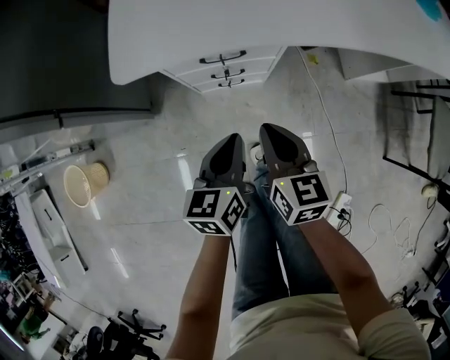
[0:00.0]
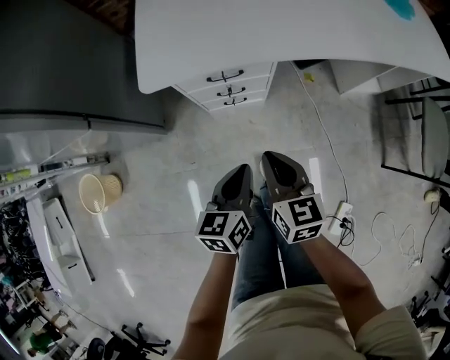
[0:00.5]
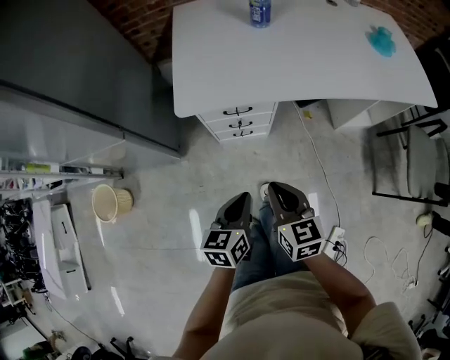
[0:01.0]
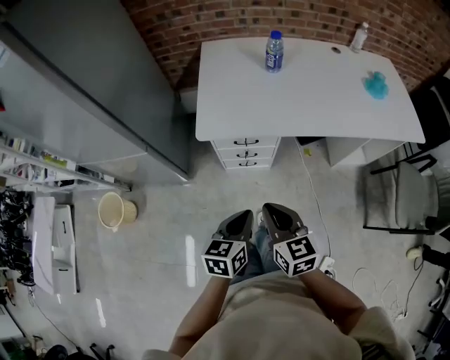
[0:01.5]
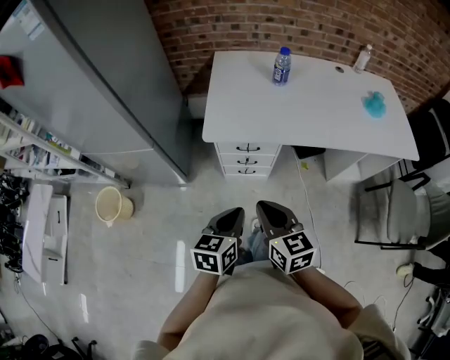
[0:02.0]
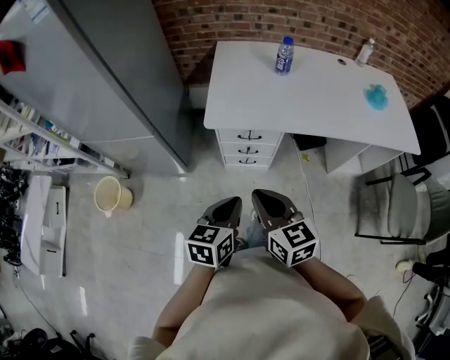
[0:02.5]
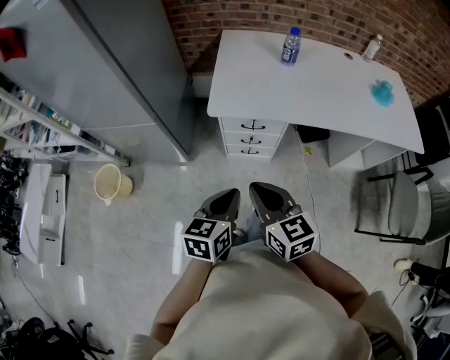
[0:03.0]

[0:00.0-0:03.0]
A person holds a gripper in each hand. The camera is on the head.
0:00.0 to 0:01.5: The two grippers go approximately 25 cm upward and backward.
0:01.5 to 0:03.0: The left gripper shifts by about 5 cm. The right gripper travels to the left and upward by some 5 cm.

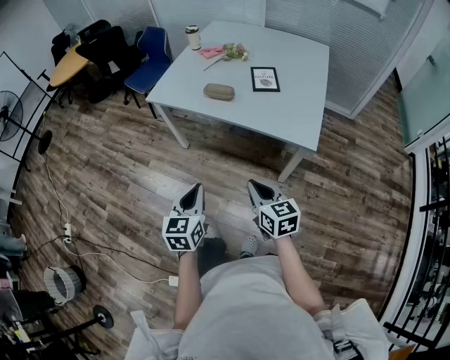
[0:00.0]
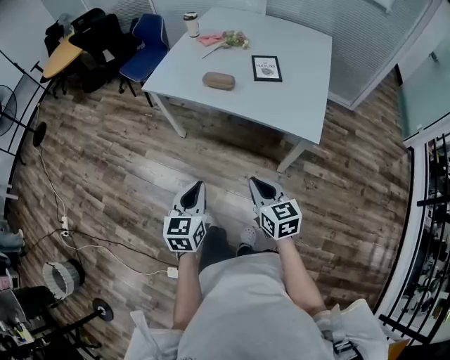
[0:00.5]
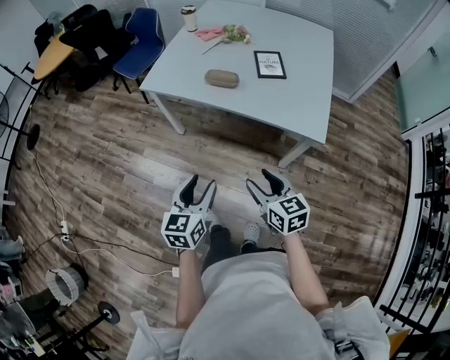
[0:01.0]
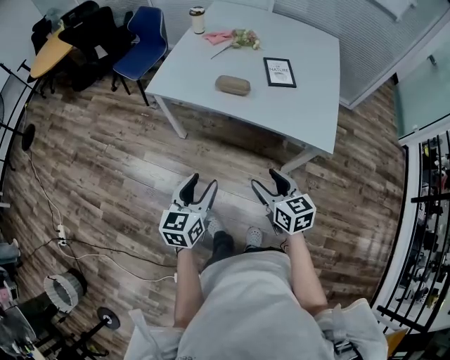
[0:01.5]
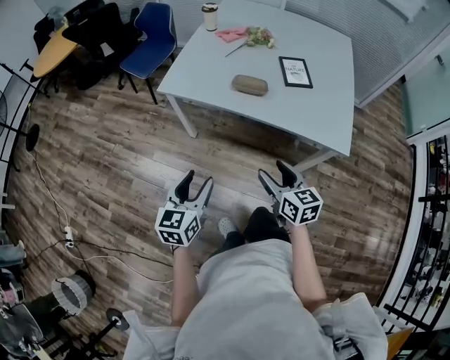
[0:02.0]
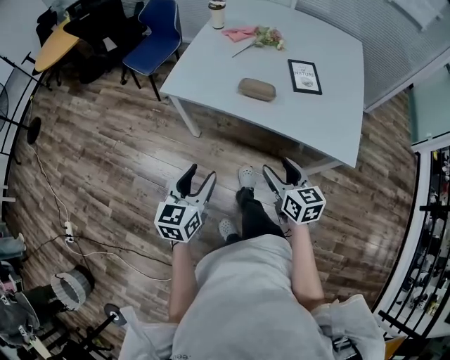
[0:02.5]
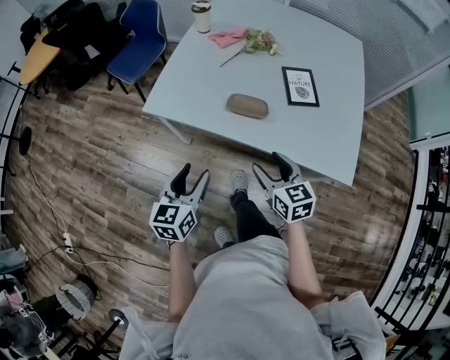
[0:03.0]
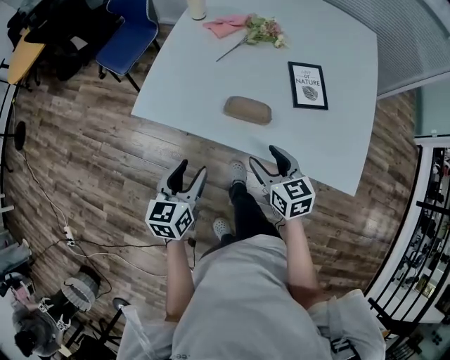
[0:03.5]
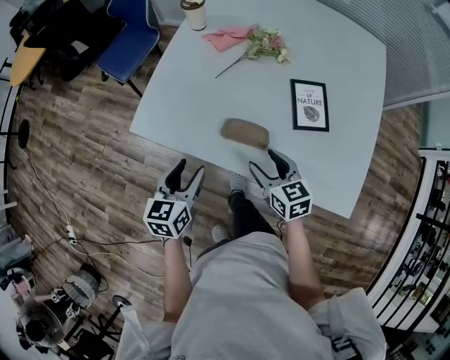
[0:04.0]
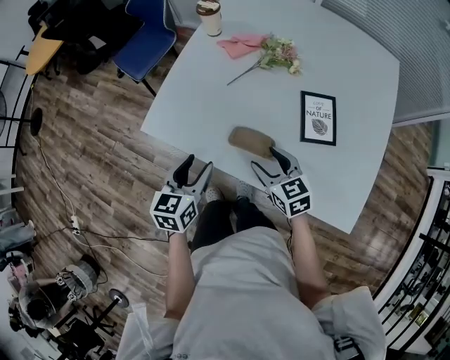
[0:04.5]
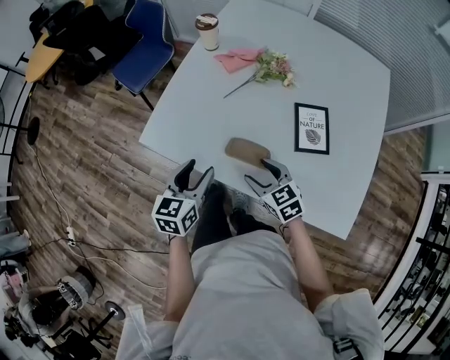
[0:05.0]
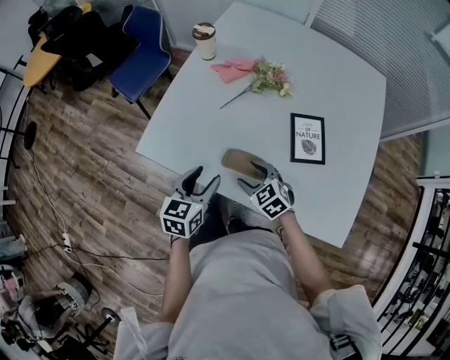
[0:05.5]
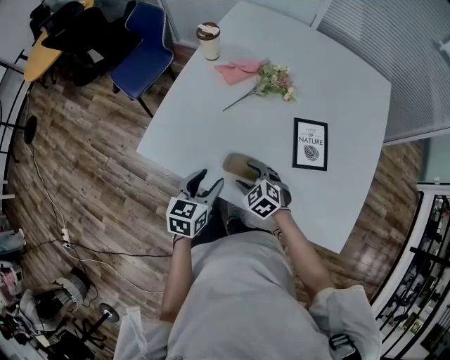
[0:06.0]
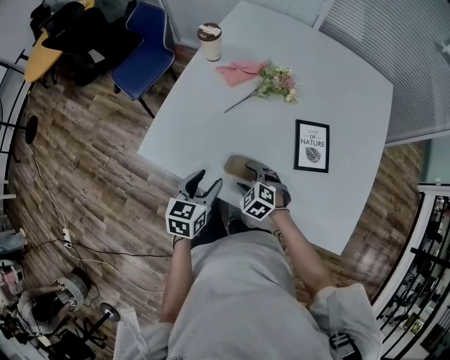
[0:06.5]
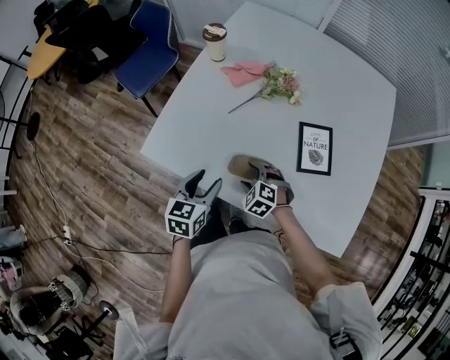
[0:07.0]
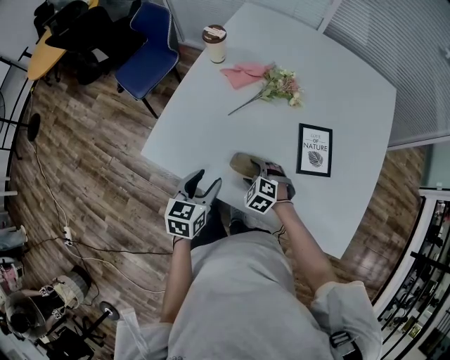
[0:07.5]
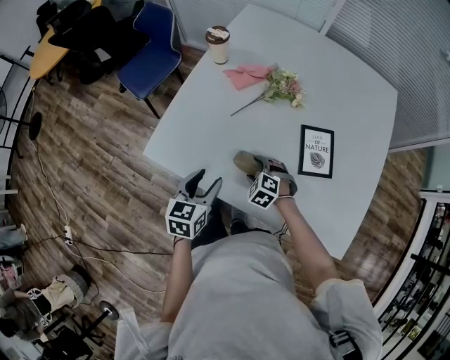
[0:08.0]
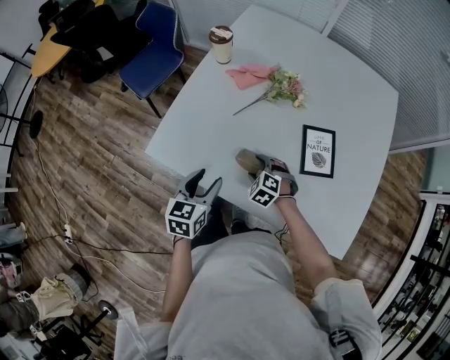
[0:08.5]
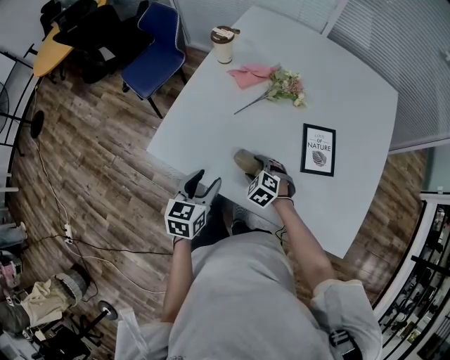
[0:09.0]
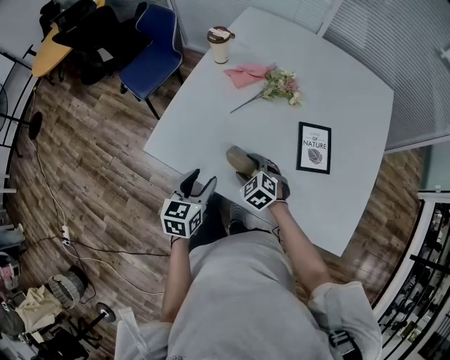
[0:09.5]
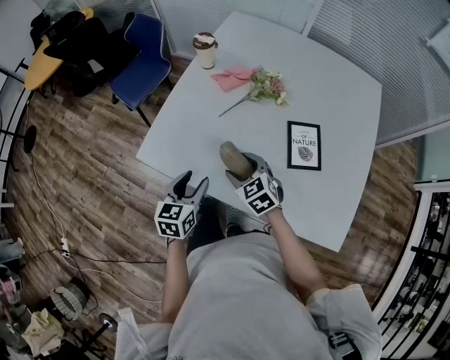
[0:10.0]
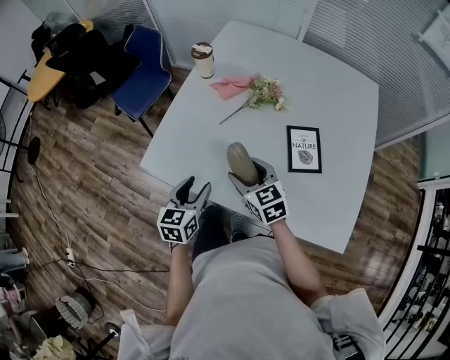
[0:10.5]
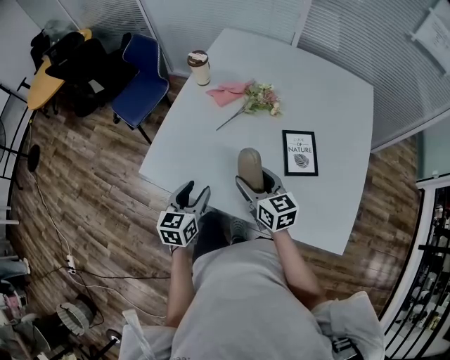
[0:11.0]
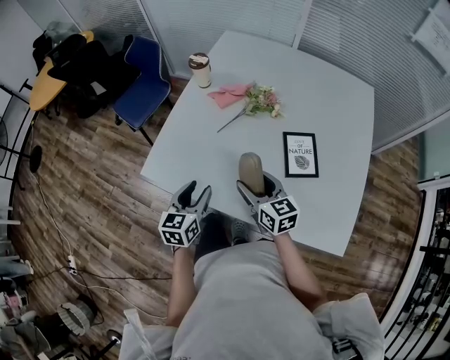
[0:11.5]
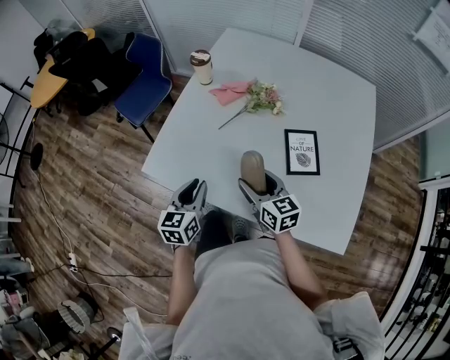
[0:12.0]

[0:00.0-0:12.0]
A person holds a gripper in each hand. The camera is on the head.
0:00.0 to 0:02.0: The right gripper travels forward and to the left by roughly 20 cm, and opens. Meanwhile the left gripper shifts approximately 20 cm to the left and forward, and opens up.
0:02.0 to 0:04.0: The grippers both shift forward by roughly 35 cm.
0:04.0 to 0:06.0: The right gripper is displaced downward and forward by some 10 cm, and changes its angle by about 40 degrees; the left gripper moves to the right and forward, some 10 cm.
0:06.0 to 0:08.0: The right gripper shifts by about 5 cm.
0:08.0 to 0:10.0: The right gripper is displaced upward by roughly 15 cm, and changes its angle by some 30 degrees.
0:10.0 to 0:12.0: The left gripper closes its fingers. The right gripper goes approximately 10 cm to the right and upward, and rotates some 40 degrees.

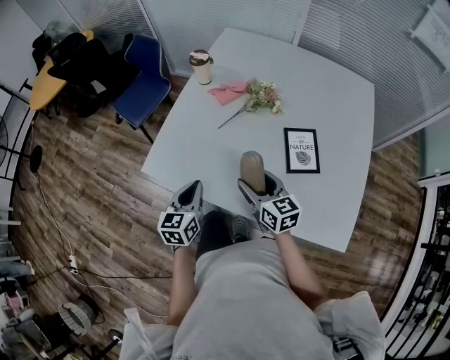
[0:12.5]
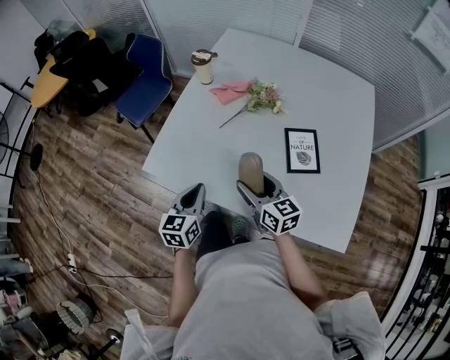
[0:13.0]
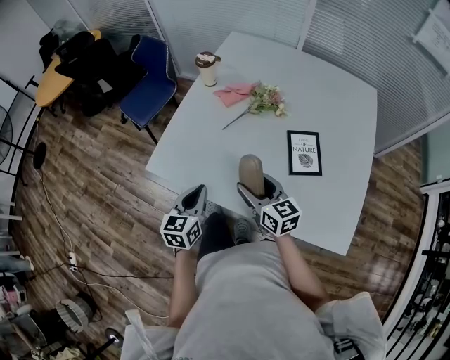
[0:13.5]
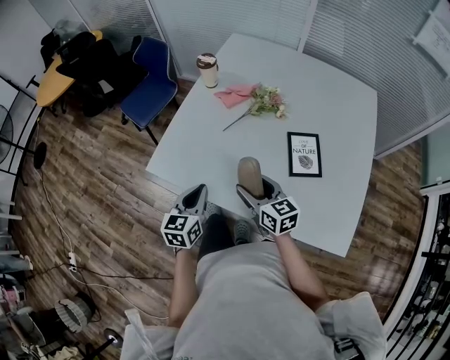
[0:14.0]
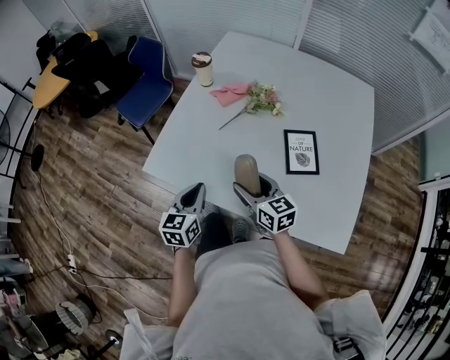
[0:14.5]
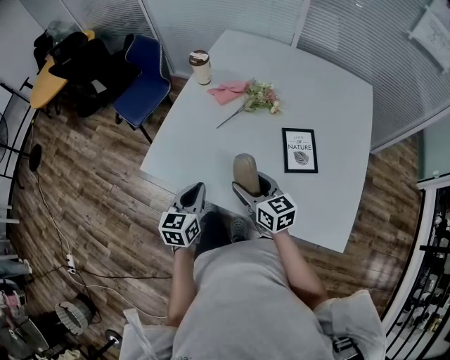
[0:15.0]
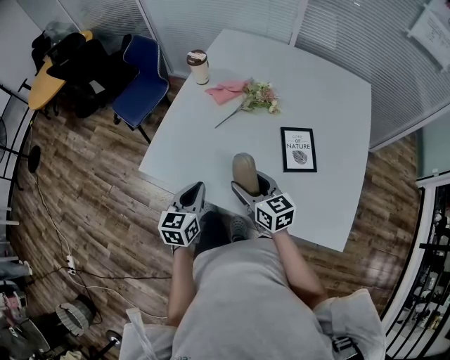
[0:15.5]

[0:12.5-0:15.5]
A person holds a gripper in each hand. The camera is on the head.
0:12.5 to 0:15.5: The grippers stay close to where they were, moving slightly.

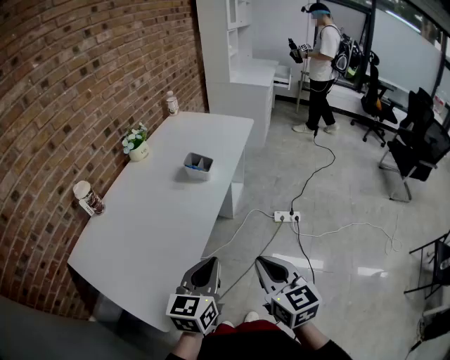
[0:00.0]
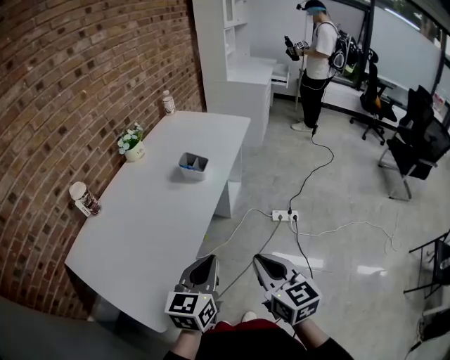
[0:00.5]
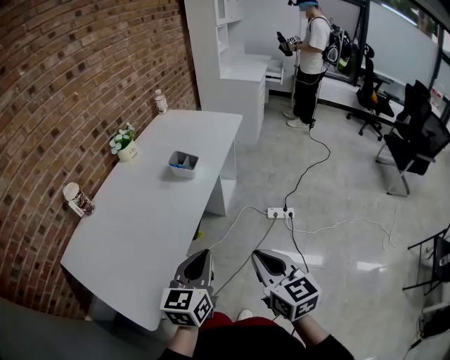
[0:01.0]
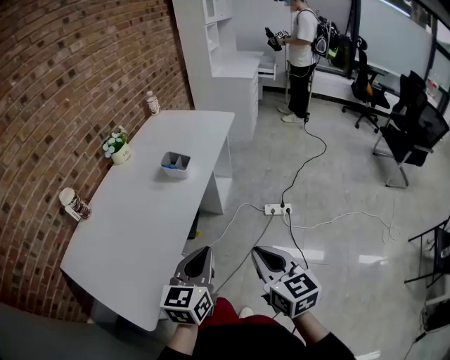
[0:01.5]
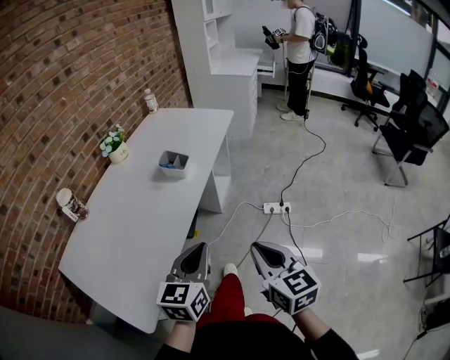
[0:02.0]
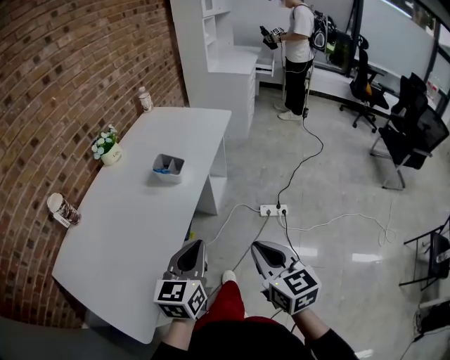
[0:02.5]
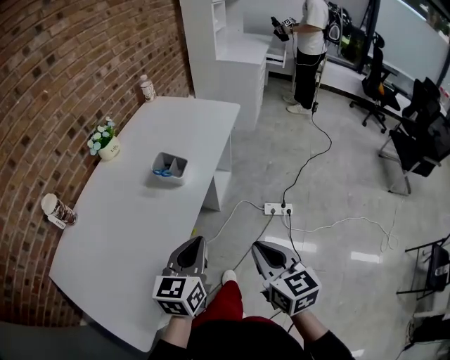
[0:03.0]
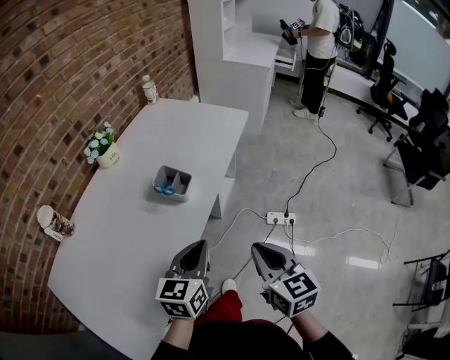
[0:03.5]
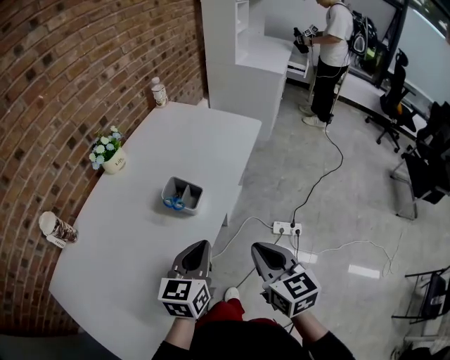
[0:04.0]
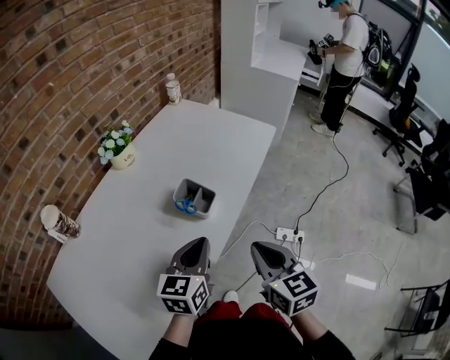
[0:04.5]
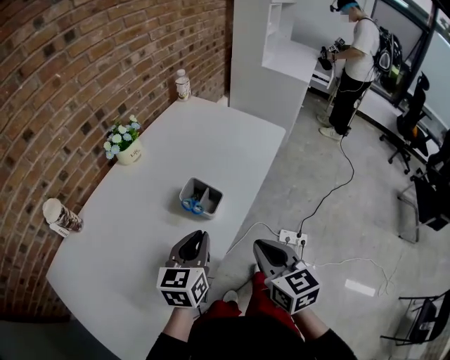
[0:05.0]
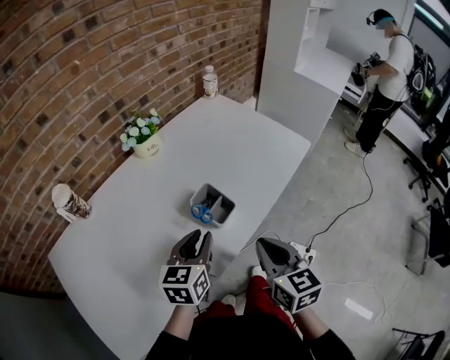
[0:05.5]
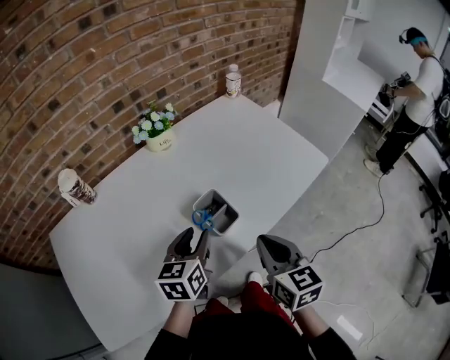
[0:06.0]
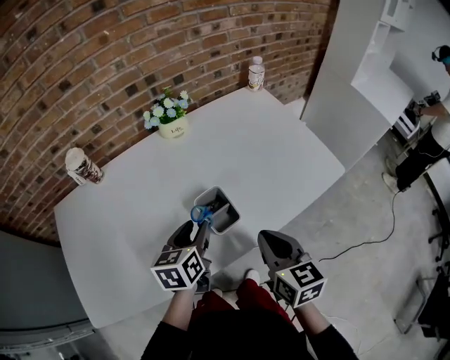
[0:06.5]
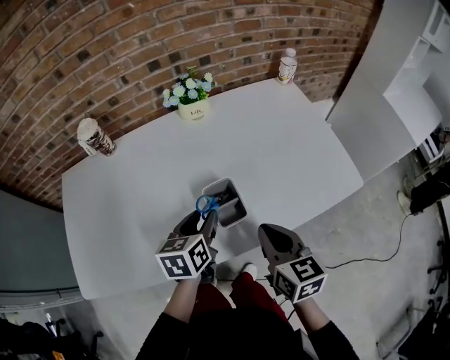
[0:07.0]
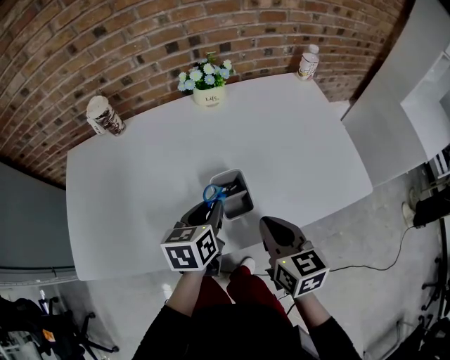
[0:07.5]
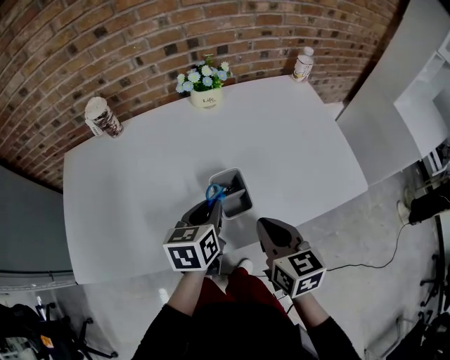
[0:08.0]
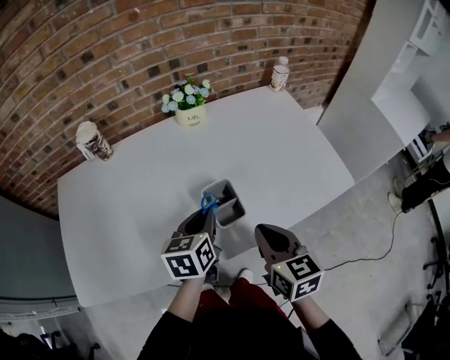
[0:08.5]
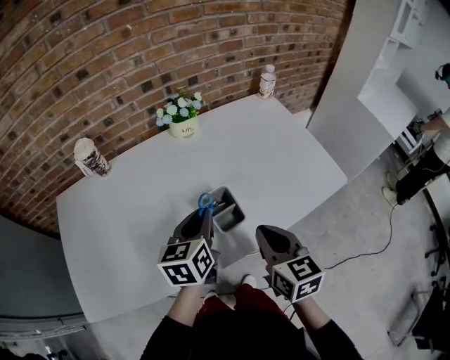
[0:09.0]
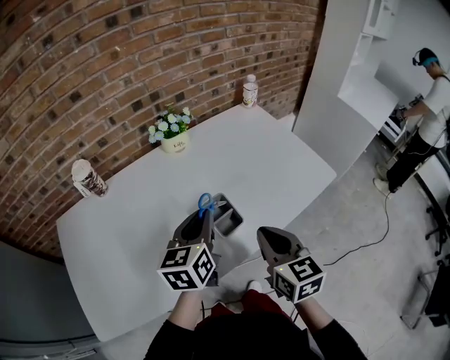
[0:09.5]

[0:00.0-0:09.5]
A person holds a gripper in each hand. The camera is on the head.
0:00.0 to 0:02.0: Both grippers move to the right, approximately 5 cm.
0:02.0 to 0:04.0: Both grippers travel together forward, approximately 25 cm.
0:04.0 to 0:05.5: The left gripper goes some 10 cm forward and to the left, and opens up. The right gripper goes some 10 cm forward.
0:05.5 to 0:07.5: The right gripper moves some 10 cm, and changes its angle by roughly 30 degrees, while the left gripper ends up about 5 cm from where it was, and swivels about 40 degrees.
0:07.5 to 0:09.5: The right gripper goes roughly 5 cm upward, while the left gripper goes about 10 cm upward, and changes its angle by about 20 degrees.
